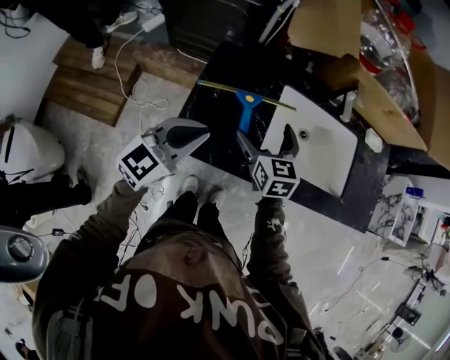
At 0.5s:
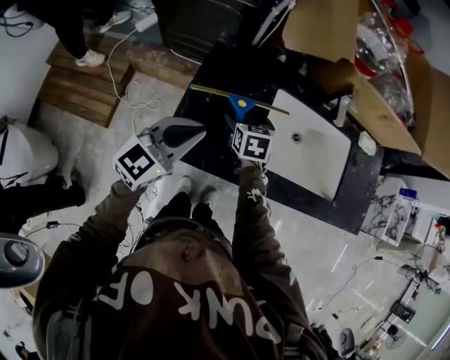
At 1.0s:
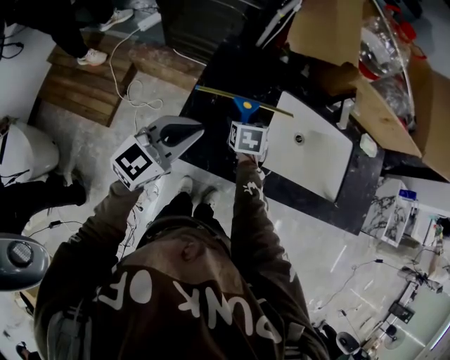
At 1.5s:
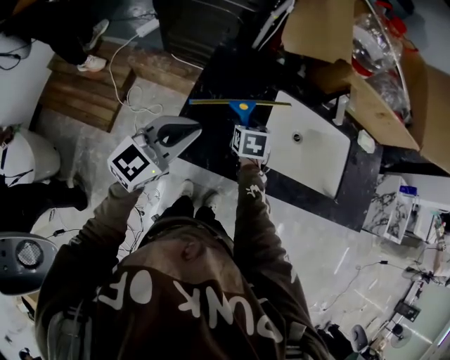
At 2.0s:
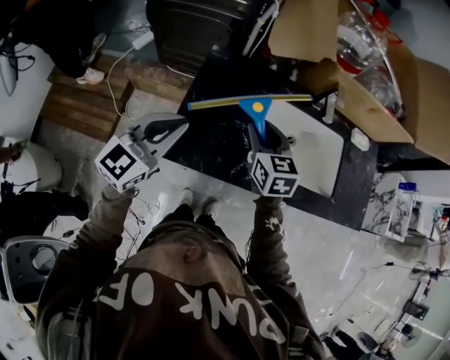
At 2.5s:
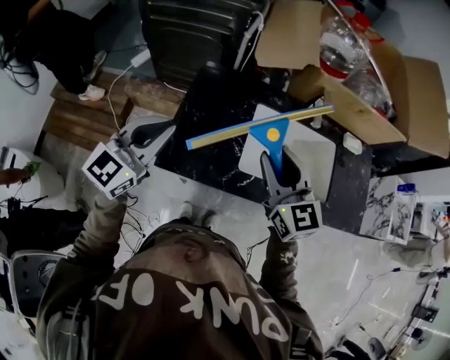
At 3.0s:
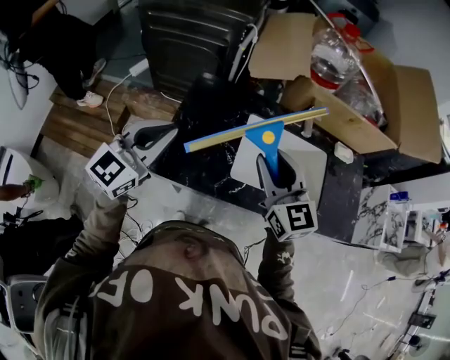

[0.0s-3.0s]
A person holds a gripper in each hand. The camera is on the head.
0.0s to 1.5s: The right gripper goes approximately 10 cm downward, changes its angle by roughly 20 degrees, and closes.
1.5s to 3.0s: The right gripper shifts approximately 30 cm upward and to the right, and tips its fingers upward by roughly 40 degrees, while the left gripper shifts approximately 10 cm upward.

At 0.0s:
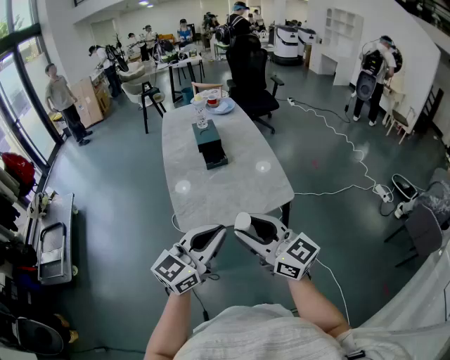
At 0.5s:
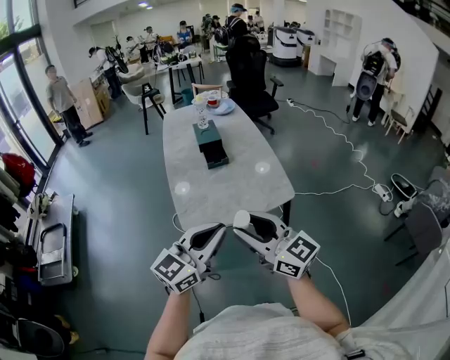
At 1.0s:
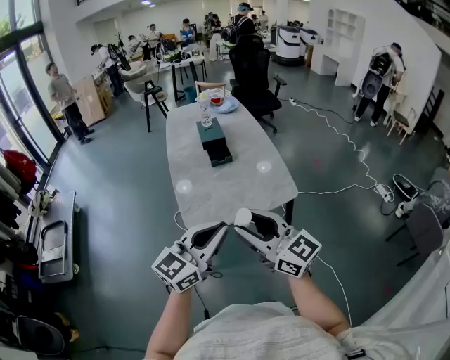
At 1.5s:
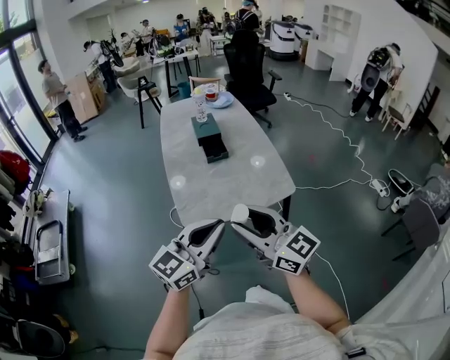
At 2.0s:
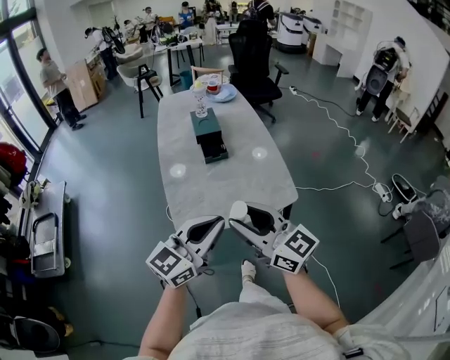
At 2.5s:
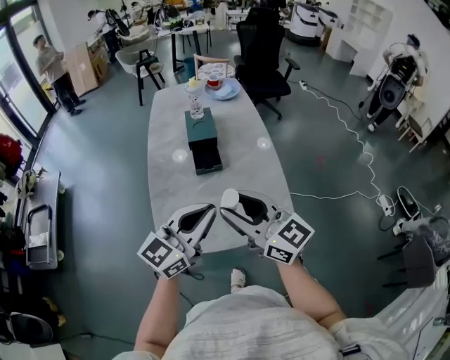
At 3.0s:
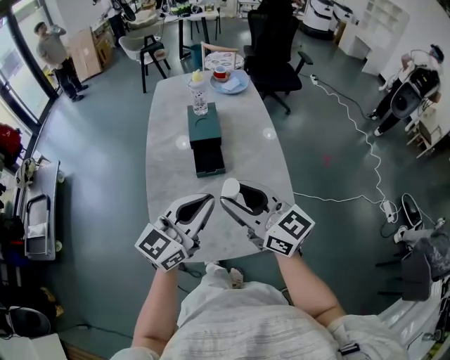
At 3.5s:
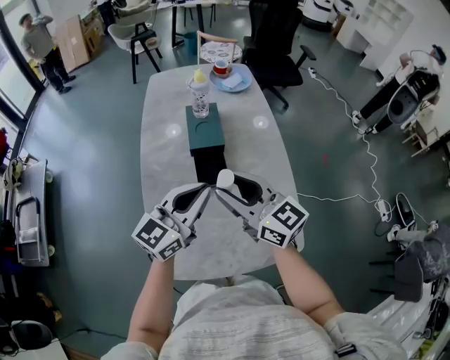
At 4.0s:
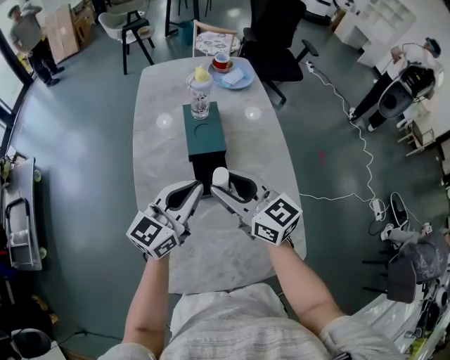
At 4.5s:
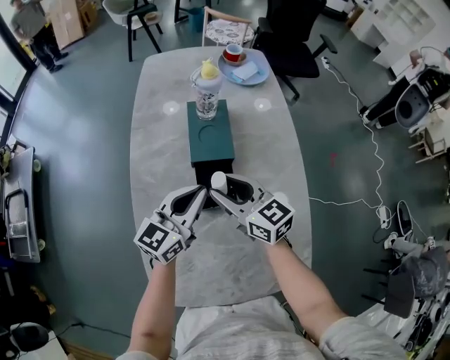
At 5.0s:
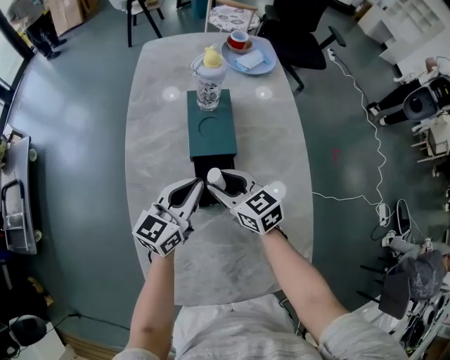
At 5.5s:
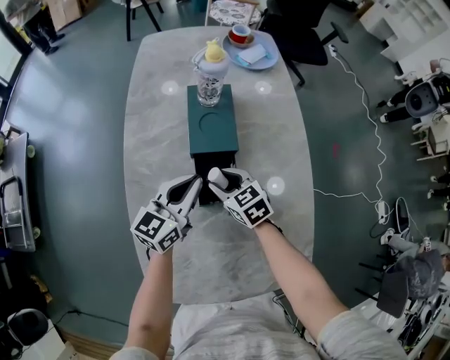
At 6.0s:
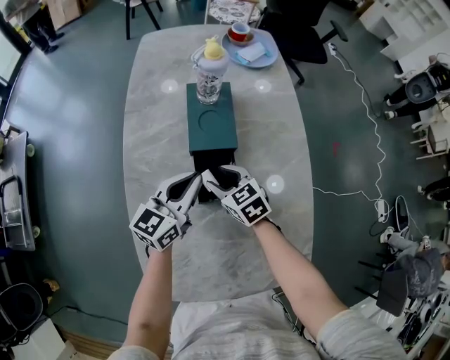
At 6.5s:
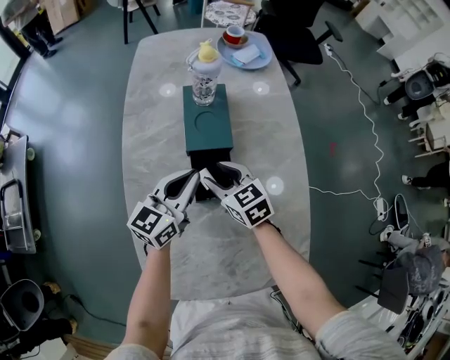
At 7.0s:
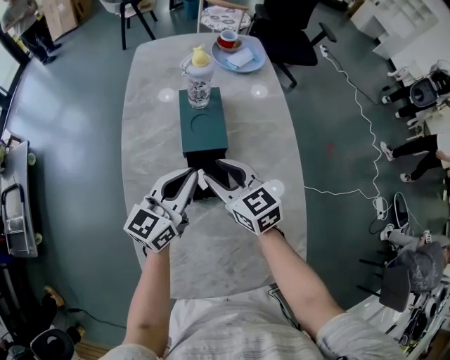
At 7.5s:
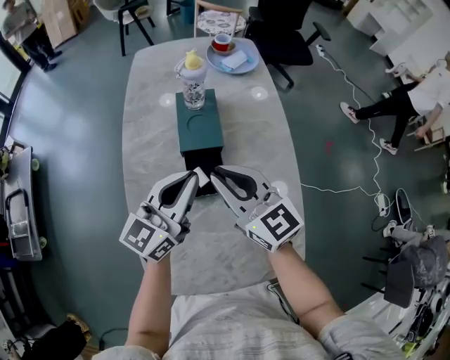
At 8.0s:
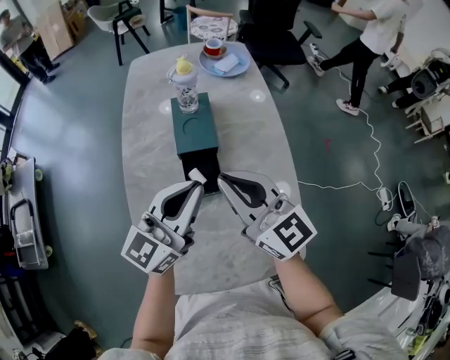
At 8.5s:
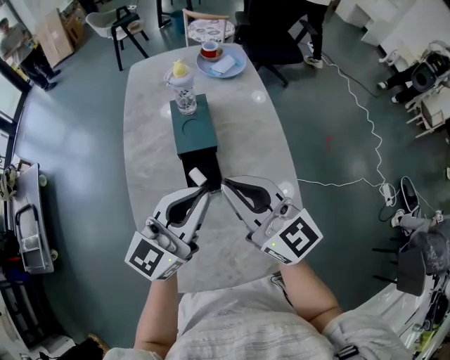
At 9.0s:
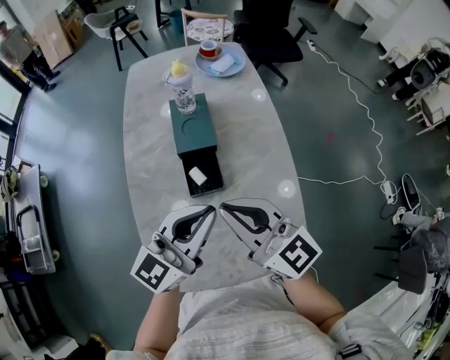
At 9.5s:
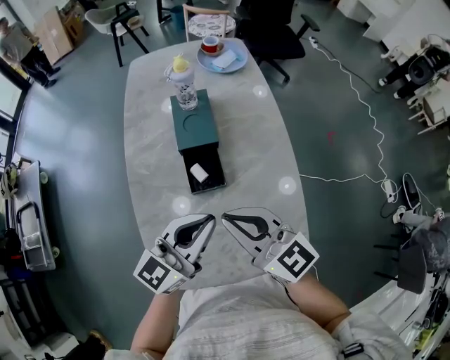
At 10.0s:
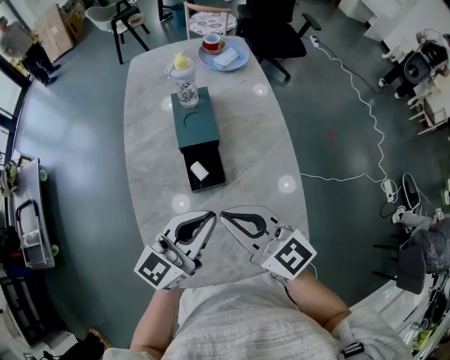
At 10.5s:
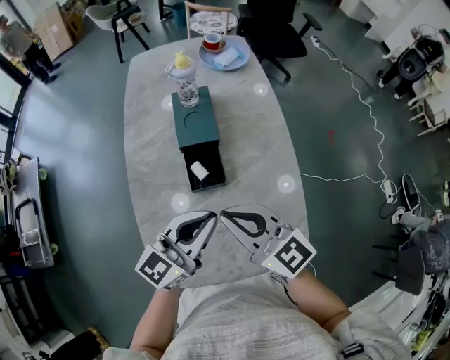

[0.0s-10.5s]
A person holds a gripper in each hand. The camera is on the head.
0.0s to 2.0s: The grippers both shift forward by some 10 cm.
2.0s to 4.0s: The two grippers travel together, forward, roughly 50 cm.
4.0s to 6.5s: The right gripper shifts some 20 cm downward and forward, and swivels about 30 degrees. The left gripper heads downward and forward, covering approximately 15 cm.
6.5s to 8.5s: The two grippers go approximately 25 cm upward and backward. The right gripper tilts its fingers roughly 40 degrees upward, and closes.
8.5s to 10.5s: The left gripper travels downward by some 5 cm. The right gripper moves backward and downward, roughly 10 cm.

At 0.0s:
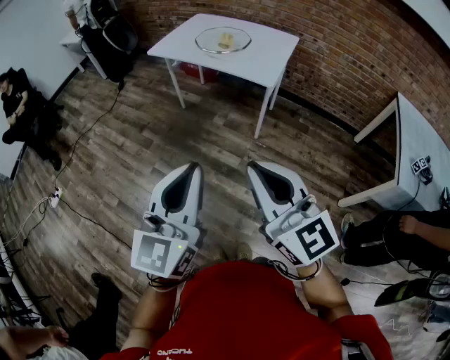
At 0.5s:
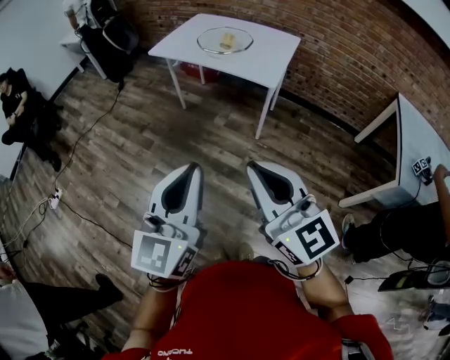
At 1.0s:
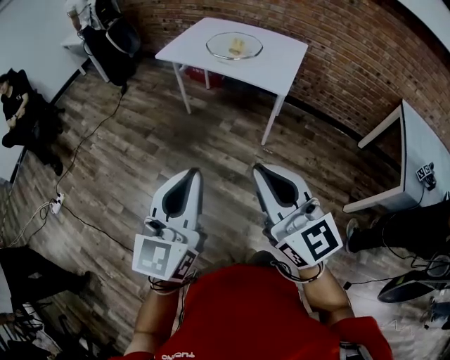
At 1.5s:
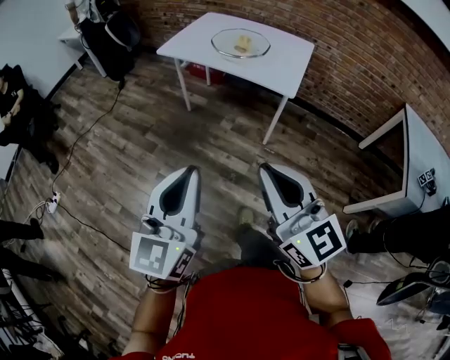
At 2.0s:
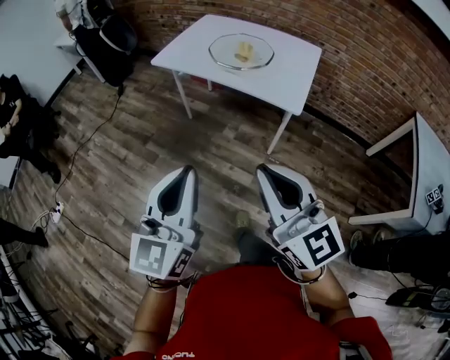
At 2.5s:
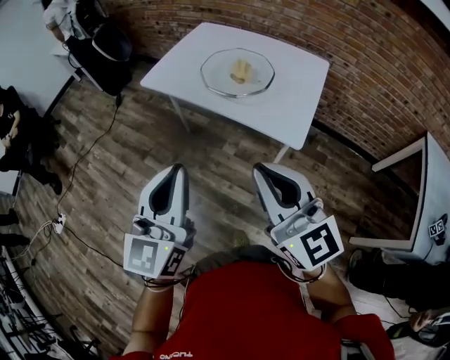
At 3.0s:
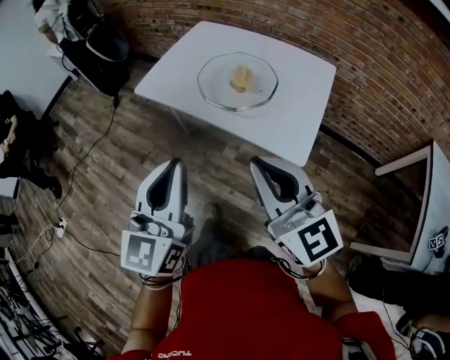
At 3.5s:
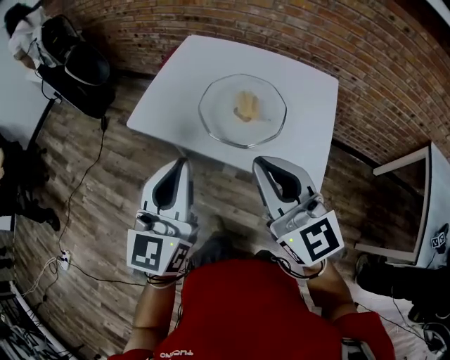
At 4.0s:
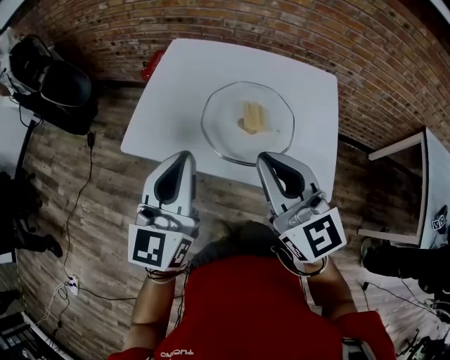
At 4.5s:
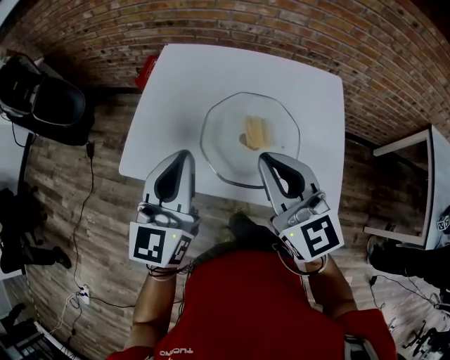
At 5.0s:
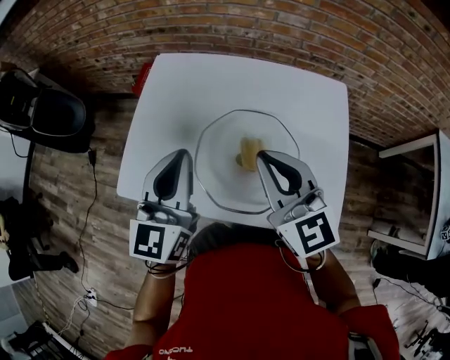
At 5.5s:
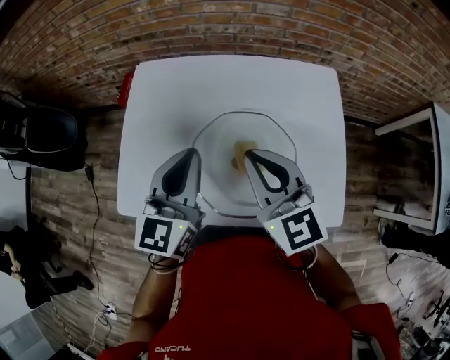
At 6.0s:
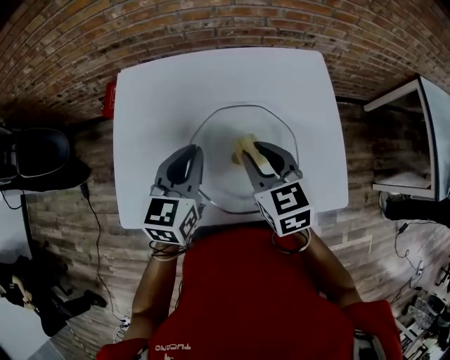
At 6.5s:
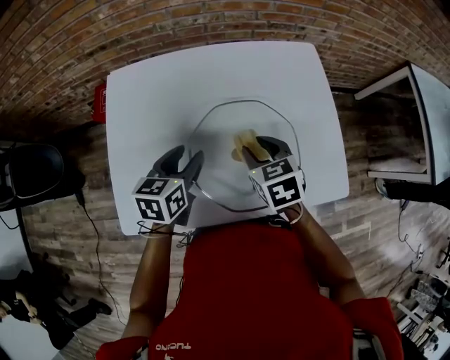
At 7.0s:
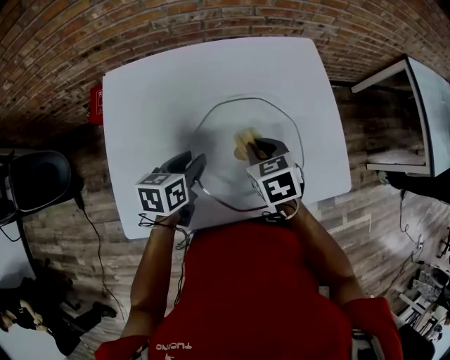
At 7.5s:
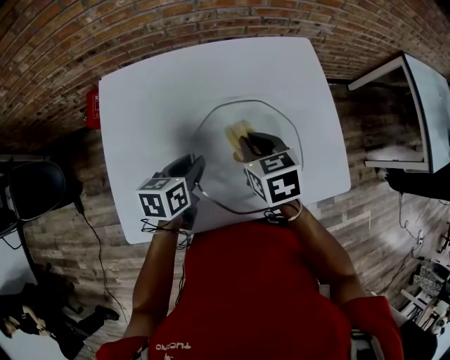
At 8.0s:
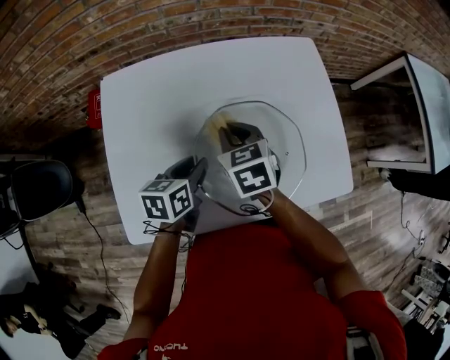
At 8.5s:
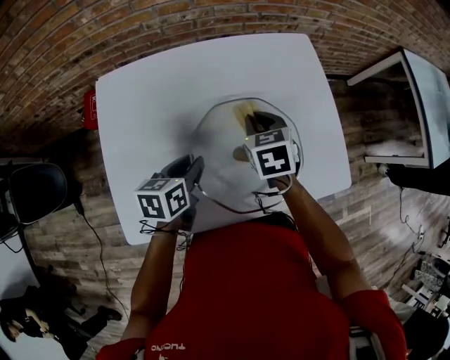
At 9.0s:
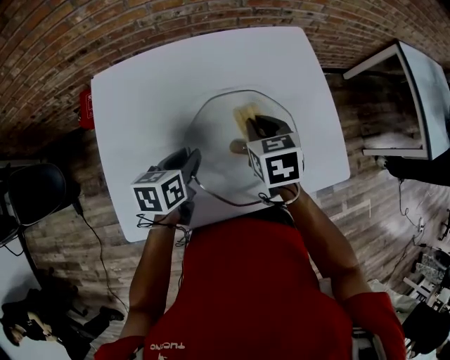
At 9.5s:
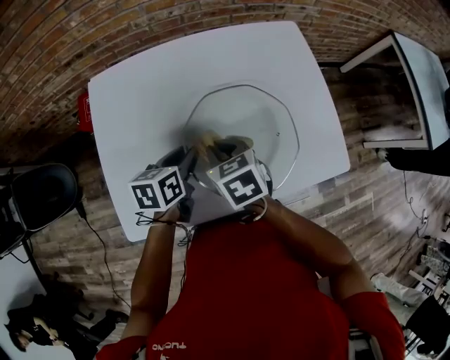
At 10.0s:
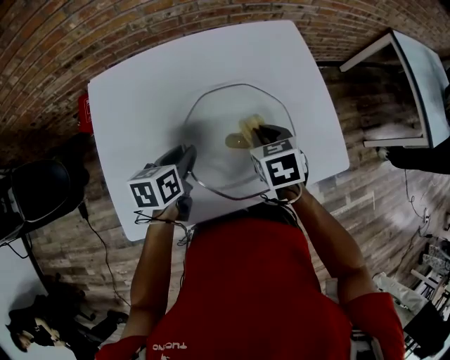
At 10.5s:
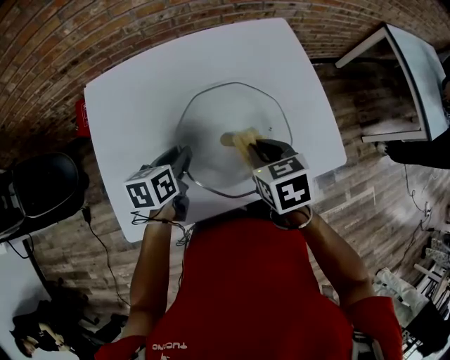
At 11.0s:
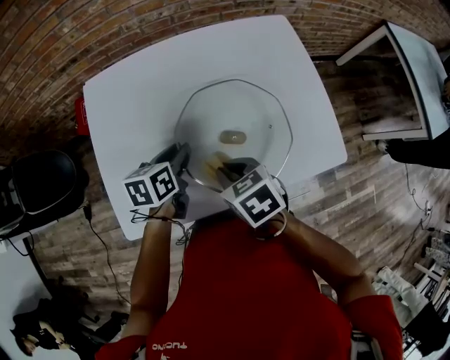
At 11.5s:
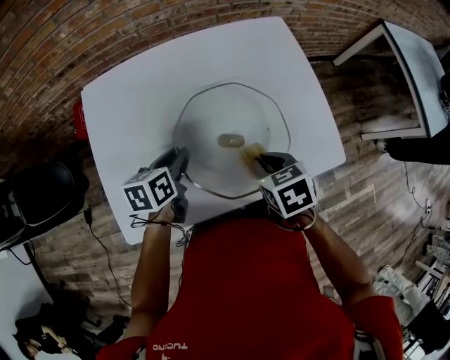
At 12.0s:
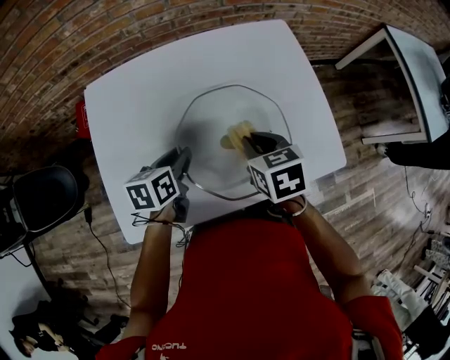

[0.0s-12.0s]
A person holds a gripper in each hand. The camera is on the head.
0.0s to 2.0s: The left gripper goes roughly 25 cm forward and to the left. Meanwhile the right gripper travels forward by approximately 20 cm.
2.0s to 4.0s: The pair of grippers is taken forward, about 50 cm.
4.0s to 6.0s: Both grippers move forward and downward, some 30 cm. The left gripper turns by some 30 degrees. Meanwhile the right gripper points its fingers about 30 degrees further downward.
6.0s to 8.0s: The left gripper travels downward by some 10 cm, rotates approximately 30 degrees, and opens. Meanwhile the right gripper travels to the left, downward and forward by some 10 cm.
8.0s to 10.0s: The right gripper swings left and right, approximately 10 cm each way, with 2 reversals.
10.0s to 12.0s: The right gripper travels backward and back again, roughly 10 cm each way.

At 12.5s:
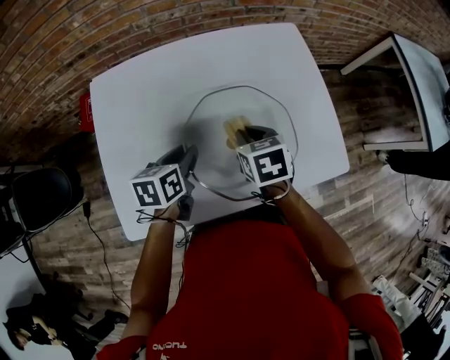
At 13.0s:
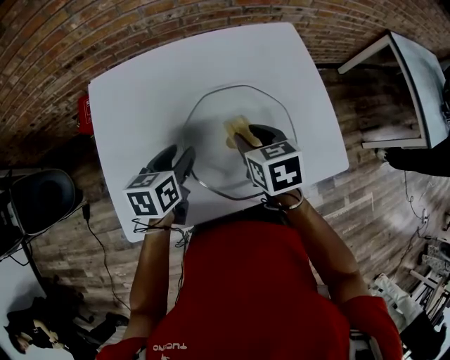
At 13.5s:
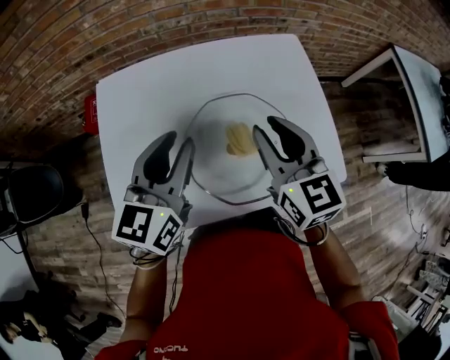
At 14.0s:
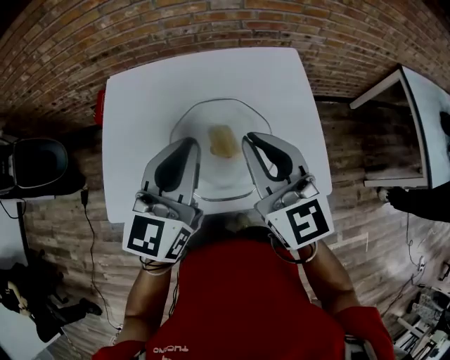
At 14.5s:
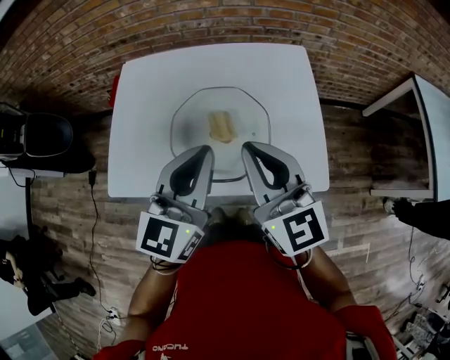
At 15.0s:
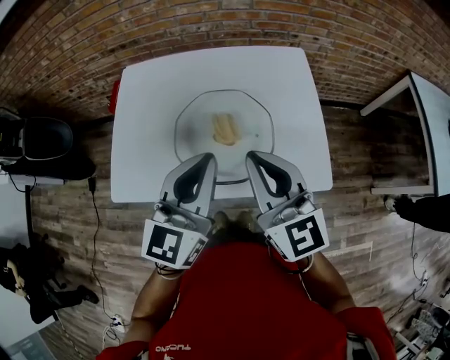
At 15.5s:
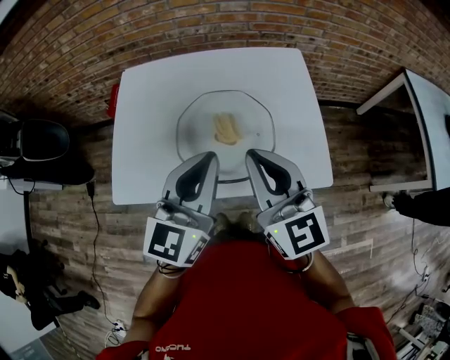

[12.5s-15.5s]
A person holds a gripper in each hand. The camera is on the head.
12.5s to 14.0s: The left gripper travels upward and to the right by roughly 25 cm, tilts its fingers approximately 40 degrees upward, and closes. The right gripper heads upward, covering approximately 25 cm, angles its fingers upward, by approximately 50 degrees, and opens and closes again.
14.0s to 15.5s: The grippers both shift backward by about 10 cm.
